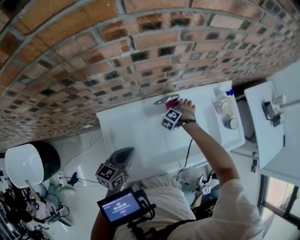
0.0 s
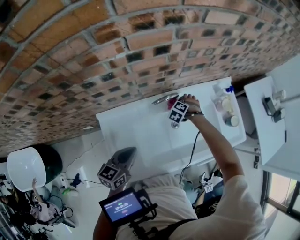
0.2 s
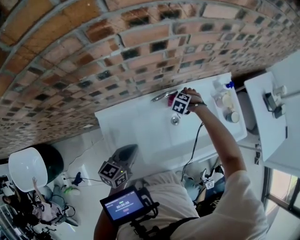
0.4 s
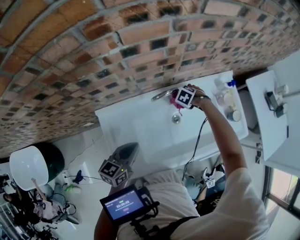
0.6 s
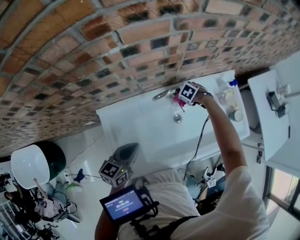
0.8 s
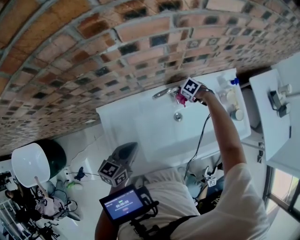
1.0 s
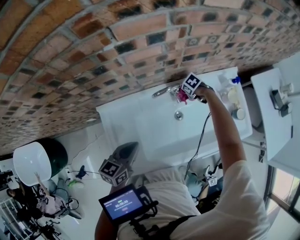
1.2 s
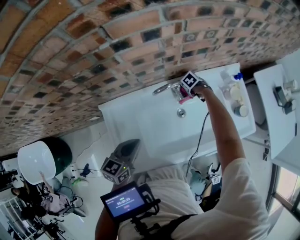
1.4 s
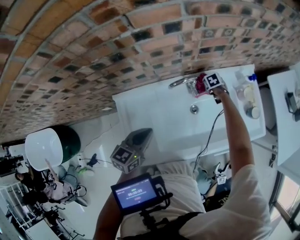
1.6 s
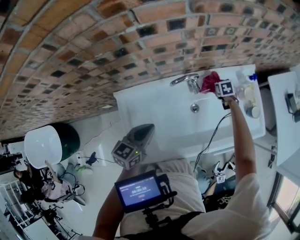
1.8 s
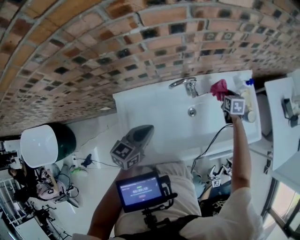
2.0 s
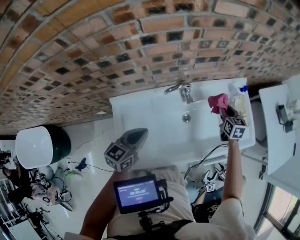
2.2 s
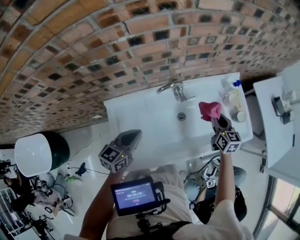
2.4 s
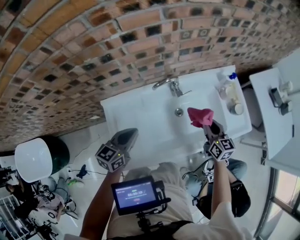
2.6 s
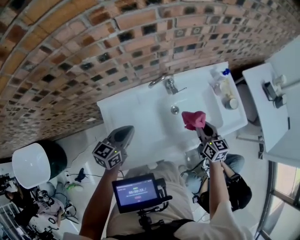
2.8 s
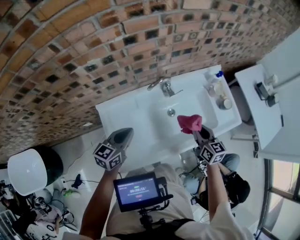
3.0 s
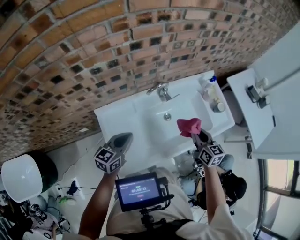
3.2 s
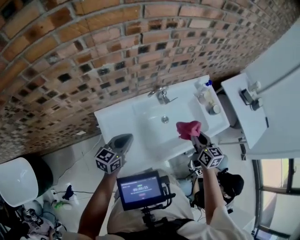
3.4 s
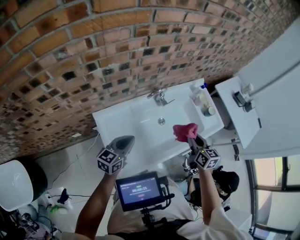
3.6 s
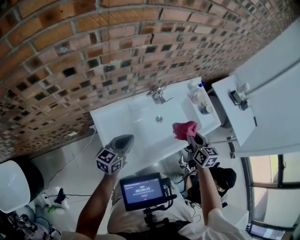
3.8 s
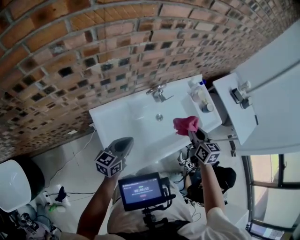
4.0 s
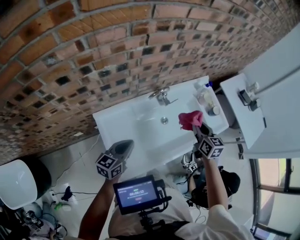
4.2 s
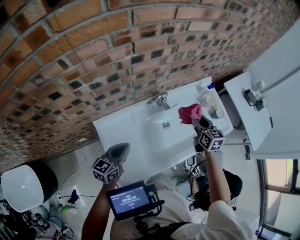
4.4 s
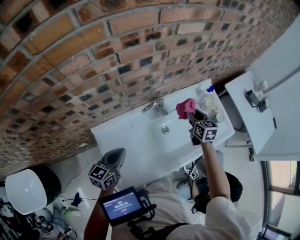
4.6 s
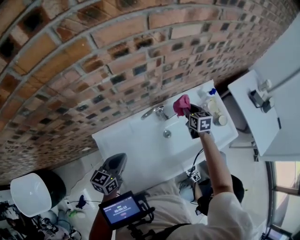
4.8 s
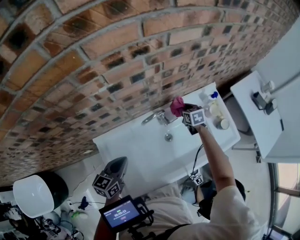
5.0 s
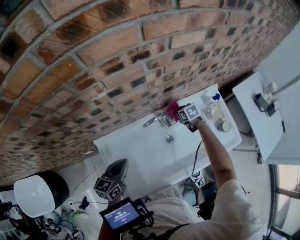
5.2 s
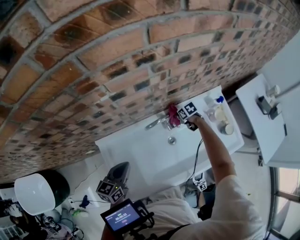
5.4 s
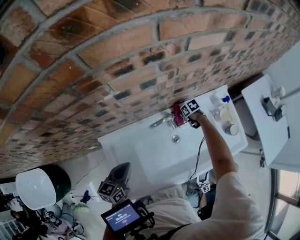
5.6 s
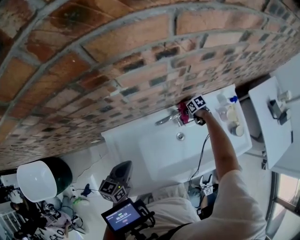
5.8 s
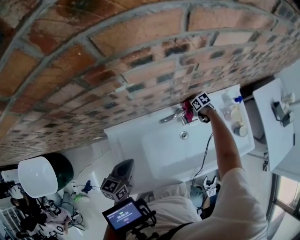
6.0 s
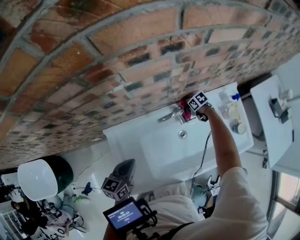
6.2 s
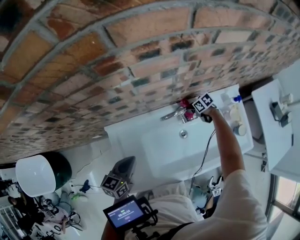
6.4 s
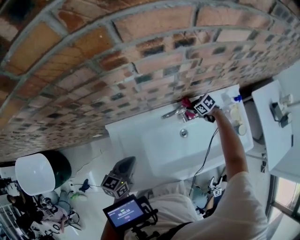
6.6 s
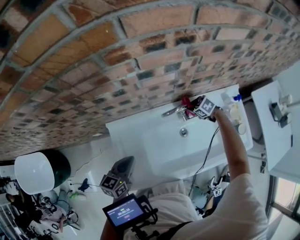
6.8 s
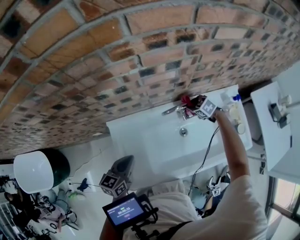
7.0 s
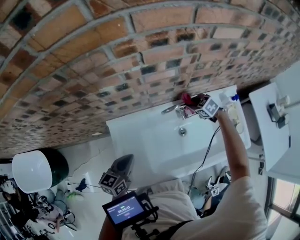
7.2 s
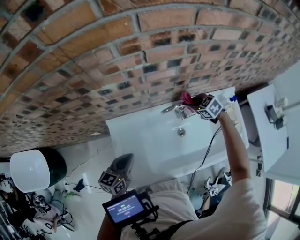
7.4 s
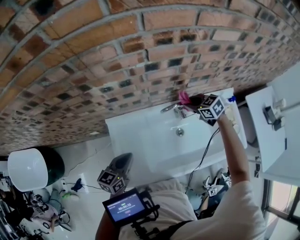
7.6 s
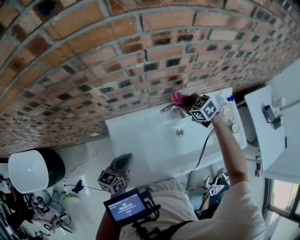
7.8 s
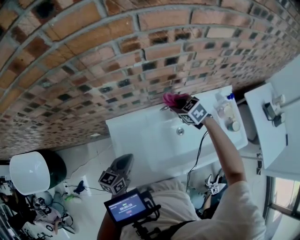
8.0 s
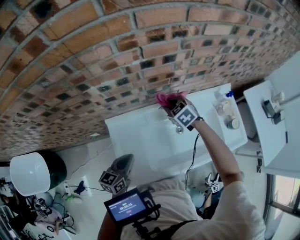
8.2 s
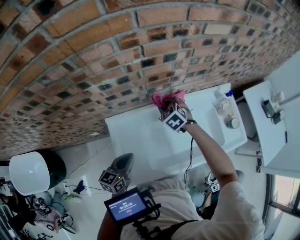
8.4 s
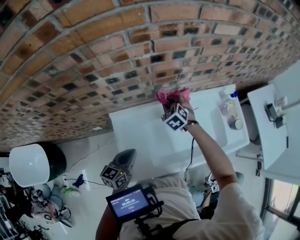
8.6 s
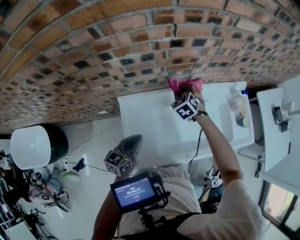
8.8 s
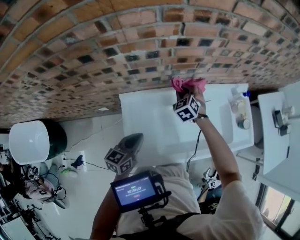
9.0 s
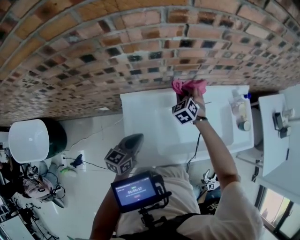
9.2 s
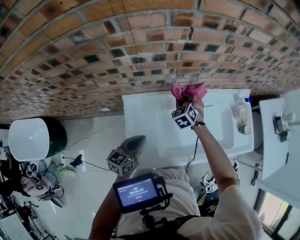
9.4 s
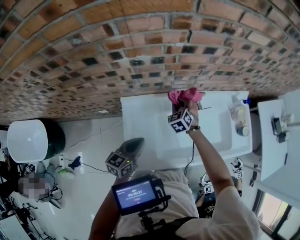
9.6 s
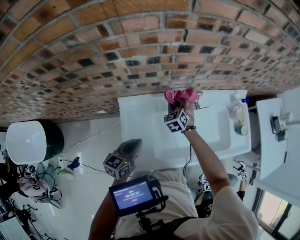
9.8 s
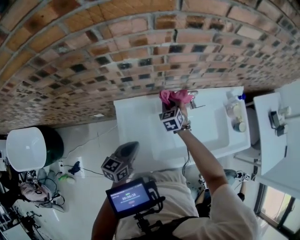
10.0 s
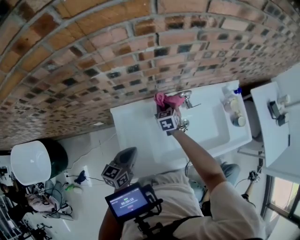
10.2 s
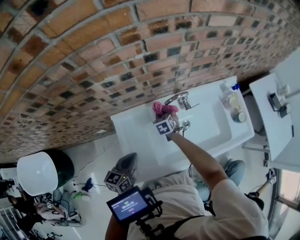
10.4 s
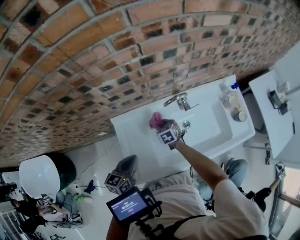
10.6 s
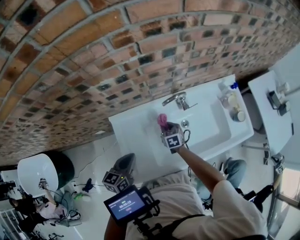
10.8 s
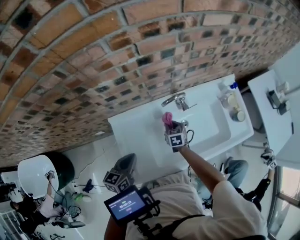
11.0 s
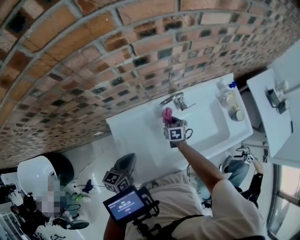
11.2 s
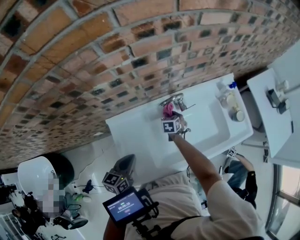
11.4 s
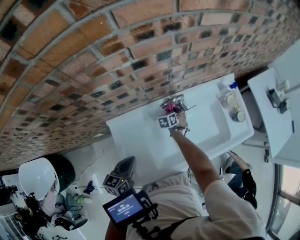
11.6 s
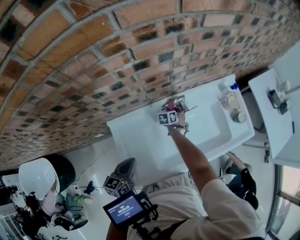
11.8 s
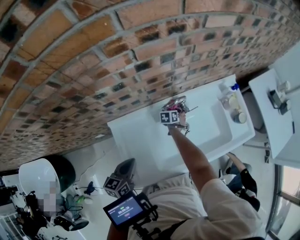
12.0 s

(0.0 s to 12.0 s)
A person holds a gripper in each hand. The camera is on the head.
0.0 s - 1.6 s: The right gripper changes place by about 15 cm, and rolls clockwise, seen from behind, by about 50 degrees.
1.6 s - 3.0 s: The right gripper moves backward and upward, about 40 cm, and tips its fingers upward by about 50 degrees.
3.0 s - 4.4 s: The right gripper shifts some 10 cm forward and upward.
4.4 s - 6.0 s: The left gripper moves some 5 cm, while the right gripper is displaced downward by roughly 35 cm, and turns by about 60 degrees.
6.0 s - 7.6 s: The left gripper ends up about 5 cm from where it was. Meanwhile the right gripper heads upward, covering some 25 cm, and swivels some 40 degrees.
7.6 s - 9.0 s: The right gripper shifts approximately 15 cm to the left, and turns by approximately 40 degrees.
9.0 s - 10.4 s: The right gripper travels downward by roughly 10 cm, and rotates about 30 degrees.
10.4 s - 12.0 s: The right gripper changes place by approximately 15 cm, and turns by some 30 degrees.

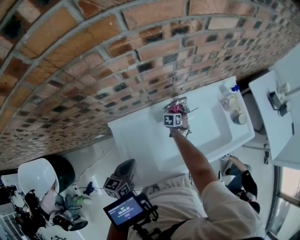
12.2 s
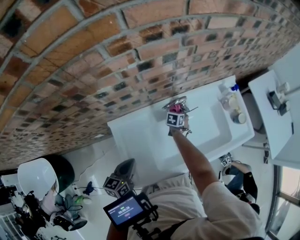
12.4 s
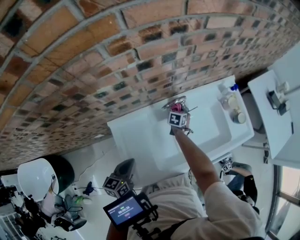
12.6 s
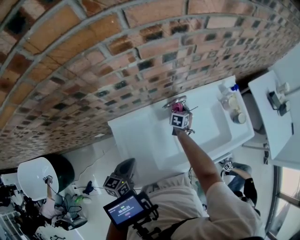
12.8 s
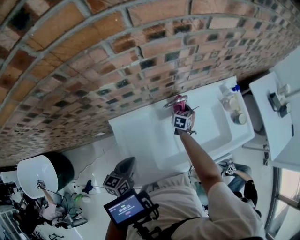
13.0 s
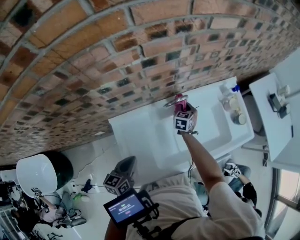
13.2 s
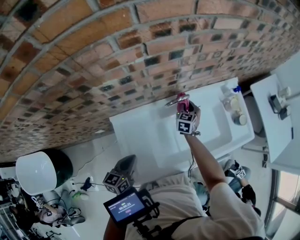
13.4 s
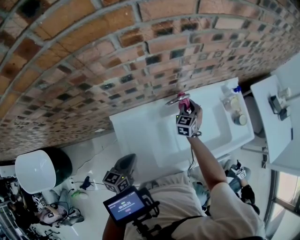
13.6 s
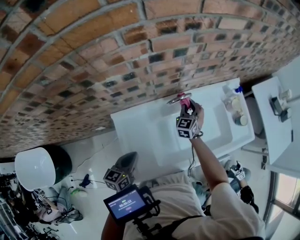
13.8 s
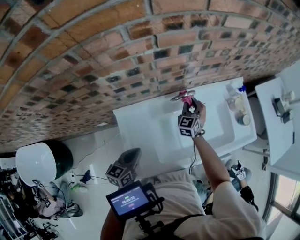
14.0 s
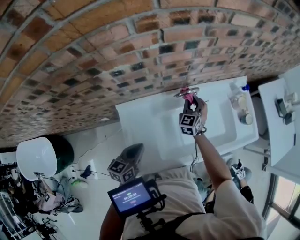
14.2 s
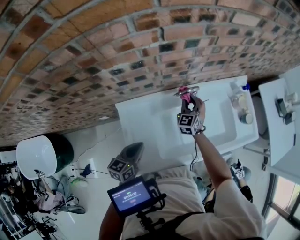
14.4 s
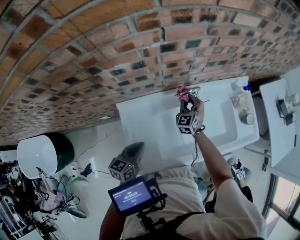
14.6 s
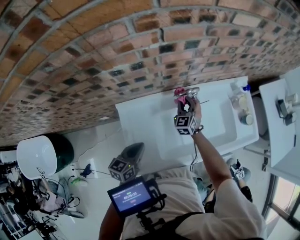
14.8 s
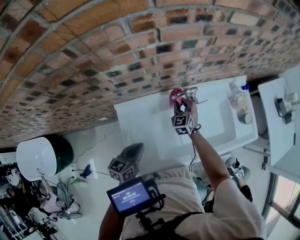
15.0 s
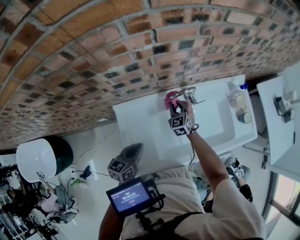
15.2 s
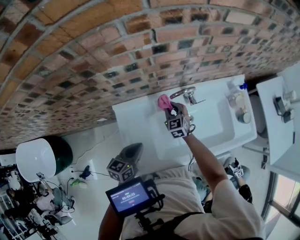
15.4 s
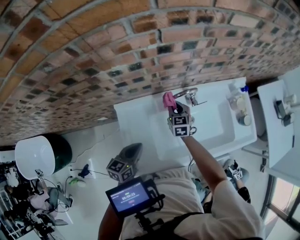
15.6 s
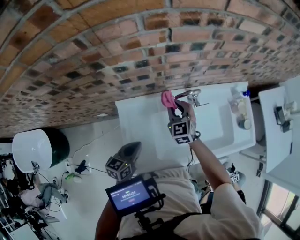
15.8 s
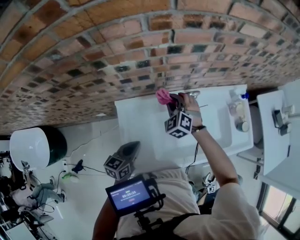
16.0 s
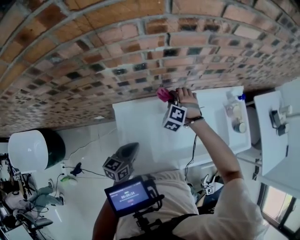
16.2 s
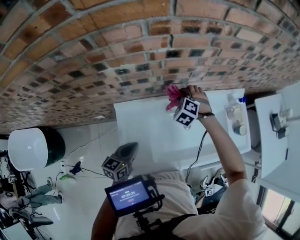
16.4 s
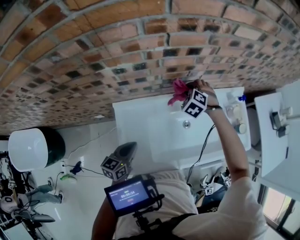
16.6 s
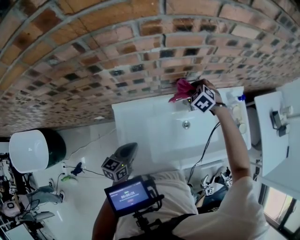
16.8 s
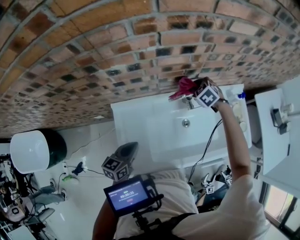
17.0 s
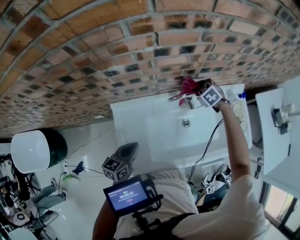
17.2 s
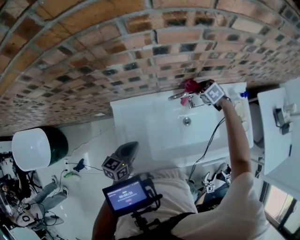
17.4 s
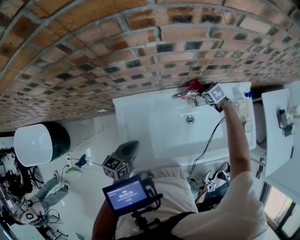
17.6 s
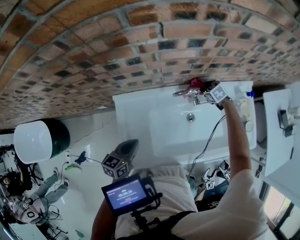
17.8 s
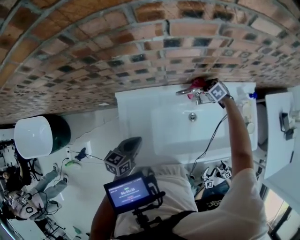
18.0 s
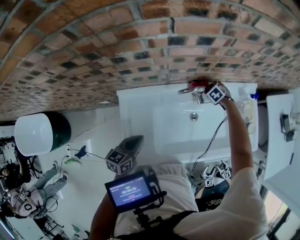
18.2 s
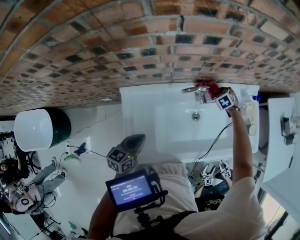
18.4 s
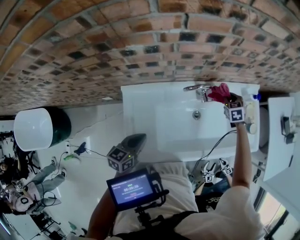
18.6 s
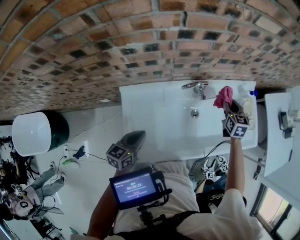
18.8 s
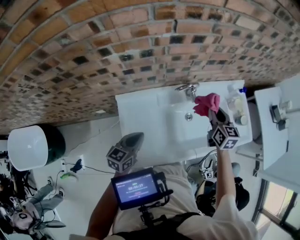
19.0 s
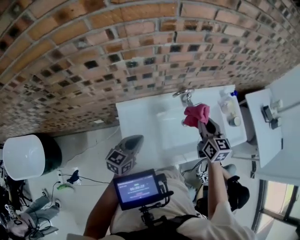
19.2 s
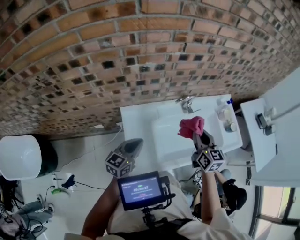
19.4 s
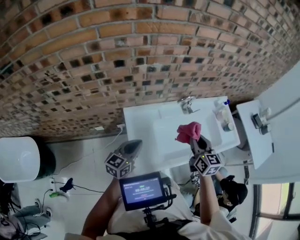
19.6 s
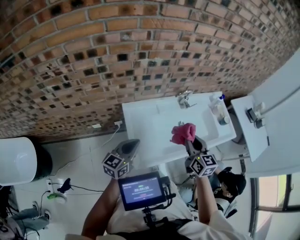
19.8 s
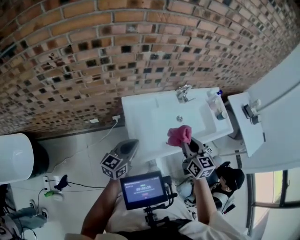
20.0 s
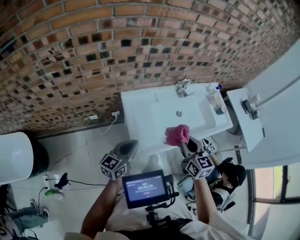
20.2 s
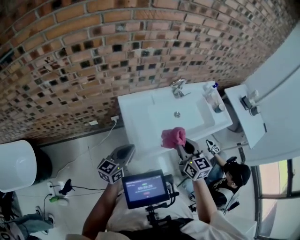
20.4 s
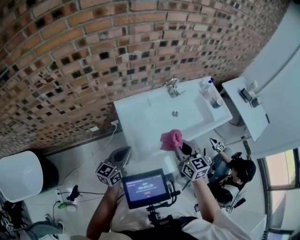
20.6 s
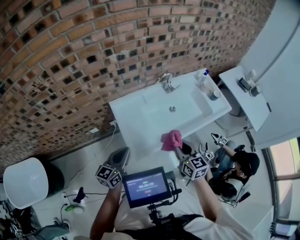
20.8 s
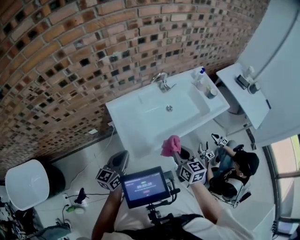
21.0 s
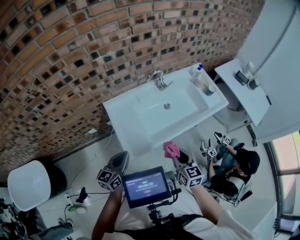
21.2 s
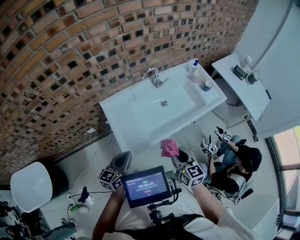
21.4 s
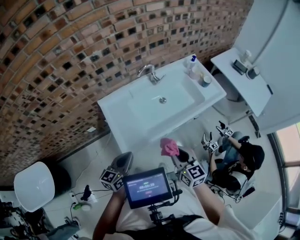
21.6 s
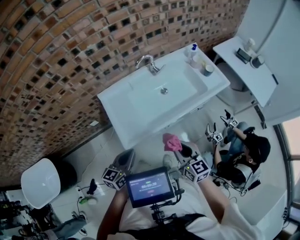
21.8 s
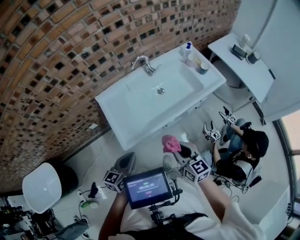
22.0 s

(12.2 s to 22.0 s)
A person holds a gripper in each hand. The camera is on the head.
12.2 s - 13.6 s: The right gripper travels upward by some 20 cm, and points its fingers some 30 degrees further upward.
13.6 s - 15.0 s: The right gripper shifts some 10 cm to the left and backward, and rotates roughly 20 degrees.
15.0 s - 16.4 s: The right gripper heads upward, covering roughly 10 cm, and rotates around the line of its fingers by some 40 degrees, counterclockwise from behind.
16.4 s - 17.8 s: The right gripper moves downward and to the right, roughly 20 cm, and turns by about 40 degrees.
17.8 s - 19.2 s: The right gripper heads upward and backward, covering about 35 cm, and tilts its fingers roughly 40 degrees upward. Meanwhile the left gripper moves upward, some 10 cm.
19.2 s - 20.6 s: Both grippers move backward, about 25 cm.
20.6 s - 22.0 s: The two grippers go roughly 20 cm to the right and backward.

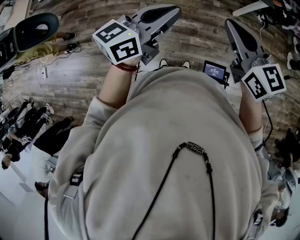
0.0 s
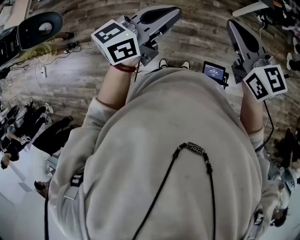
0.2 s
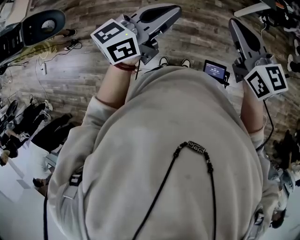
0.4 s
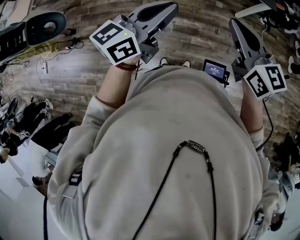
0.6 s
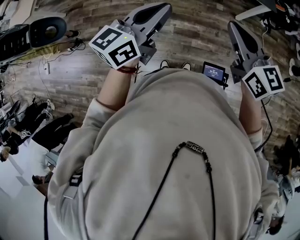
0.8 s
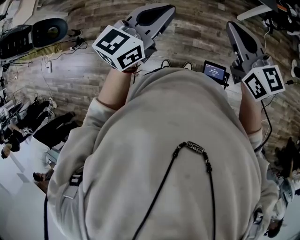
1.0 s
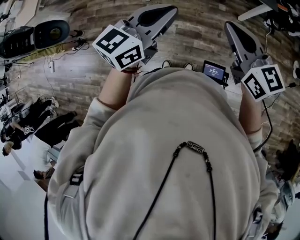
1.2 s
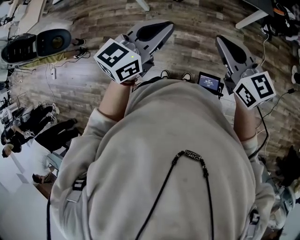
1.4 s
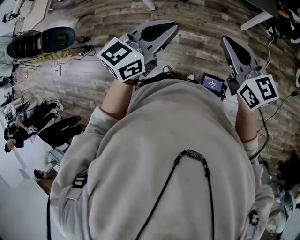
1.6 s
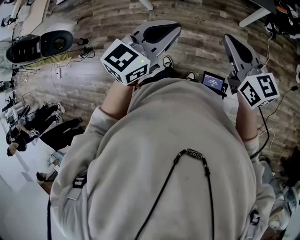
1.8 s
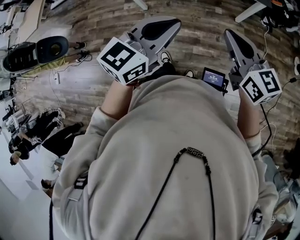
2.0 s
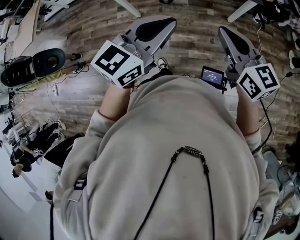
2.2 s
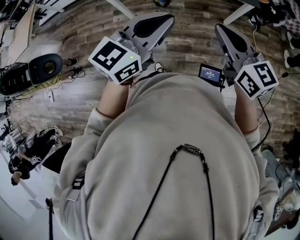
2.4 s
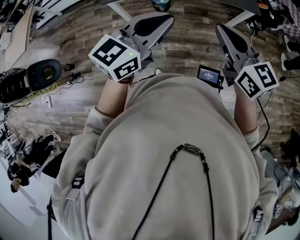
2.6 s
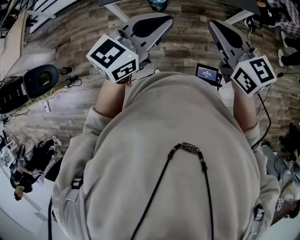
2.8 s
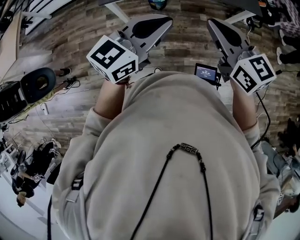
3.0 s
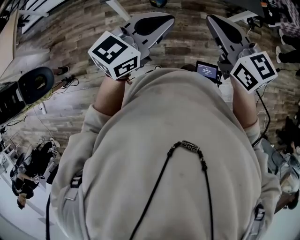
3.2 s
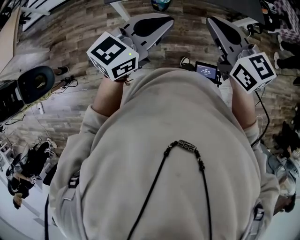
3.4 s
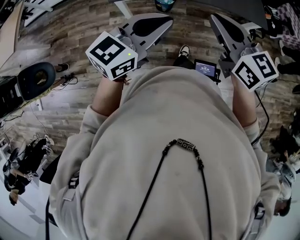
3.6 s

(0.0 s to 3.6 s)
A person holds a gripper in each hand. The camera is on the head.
0.0 s - 1.8 s: The two grippers go approximately 5 cm to the right. The left gripper rotates about 20 degrees.
1.8 s - 3.6 s: Both grippers travel together to the left and forward, some 25 cm.
